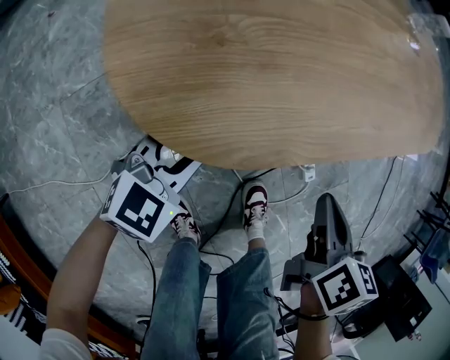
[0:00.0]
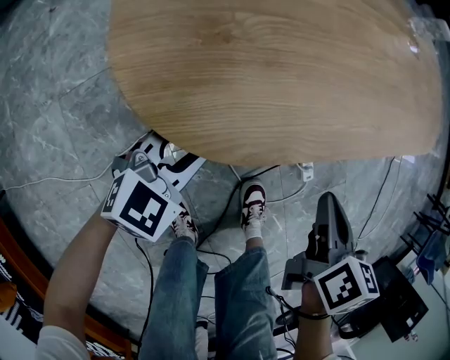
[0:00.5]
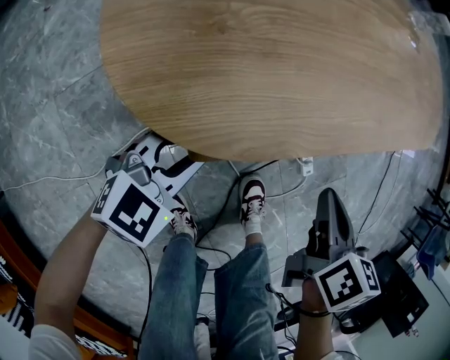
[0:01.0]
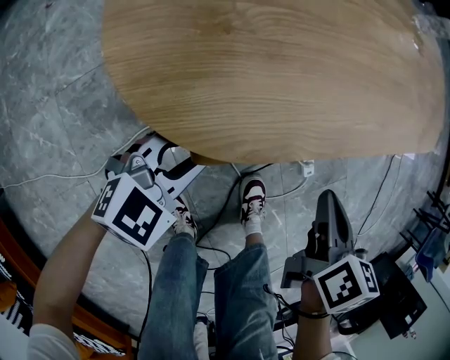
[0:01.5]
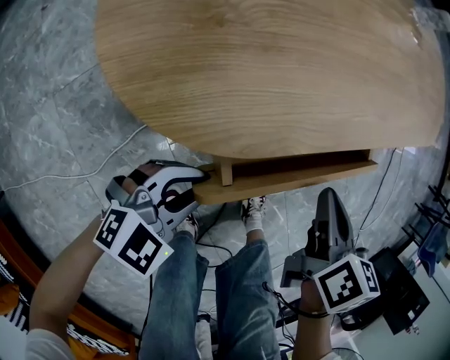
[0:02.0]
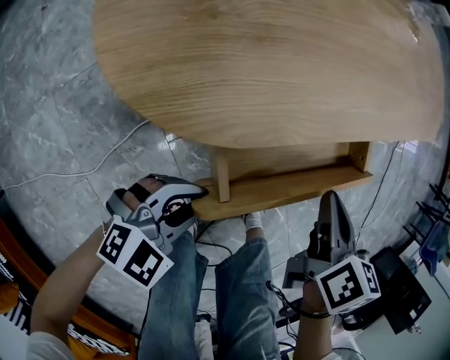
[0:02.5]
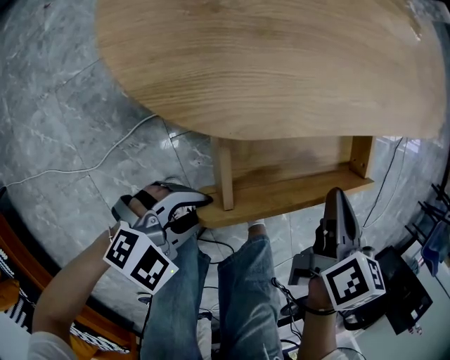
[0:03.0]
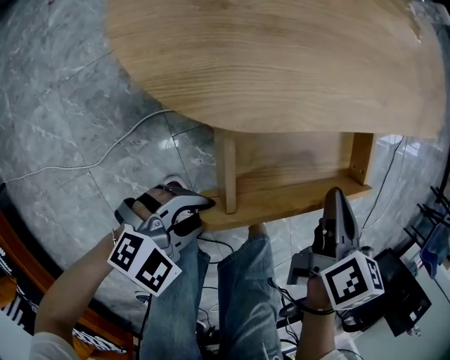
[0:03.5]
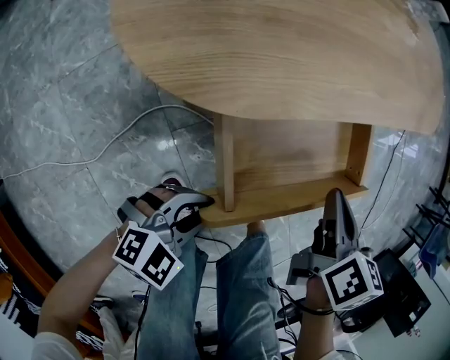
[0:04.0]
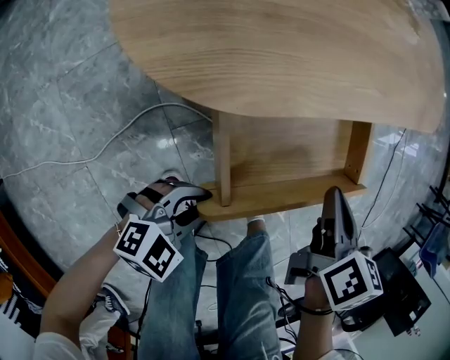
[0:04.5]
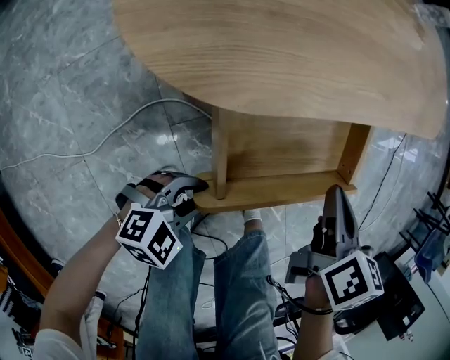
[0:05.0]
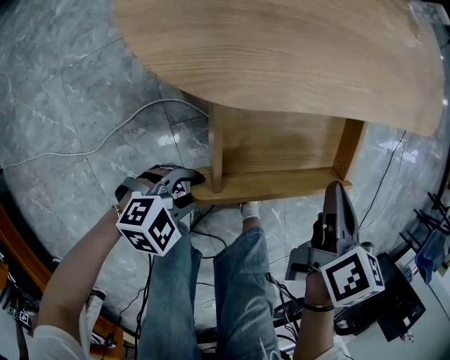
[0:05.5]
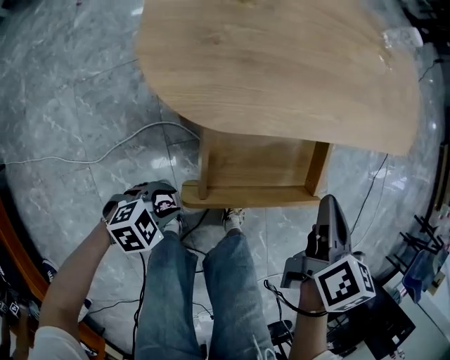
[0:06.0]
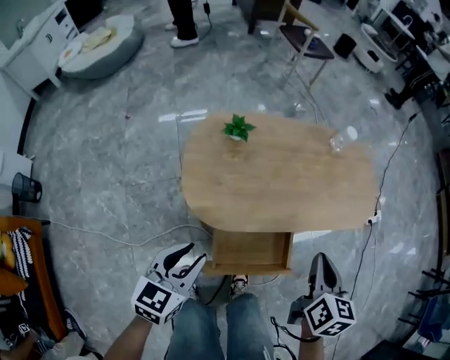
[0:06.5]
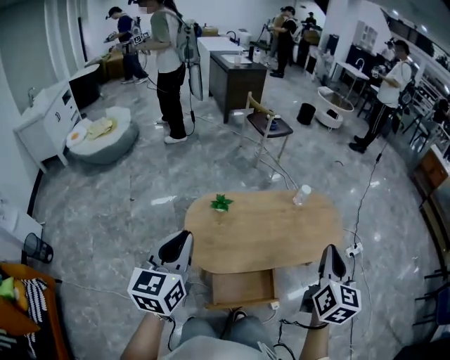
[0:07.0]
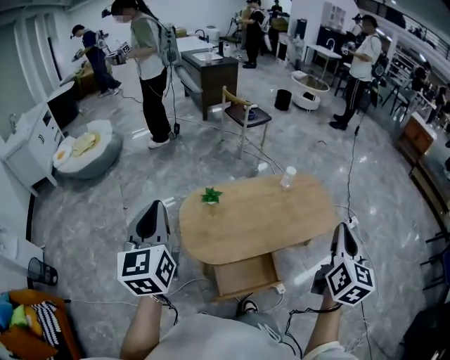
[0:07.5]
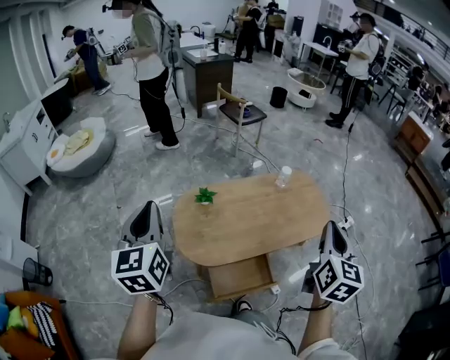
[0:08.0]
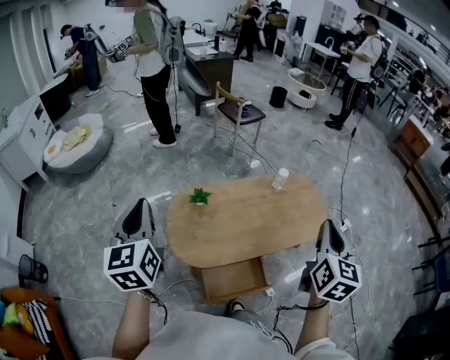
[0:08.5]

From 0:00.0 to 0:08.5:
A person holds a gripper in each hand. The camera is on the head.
From 0:00.0 to 0:02.0: The left gripper heads backward and to the right, covering some 10 cm.
From 0:02.0 to 0:04.0: The left gripper travels to the right and backward by some 10 cm. Meanwhile the right gripper moves roughly 5 cm.
From 0:04.0 to 0:06.5: Both grippers move upward, some 30 cm. The right gripper turns by roughly 20 degrees. Meanwhile the left gripper changes its angle by roughly 60 degrees.
From 0:06.5 to 0:08.5: Both grippers travel together upward, approximately 30 cm. The right gripper rotates roughly 30 degrees, while the left gripper turns by some 40 degrees.

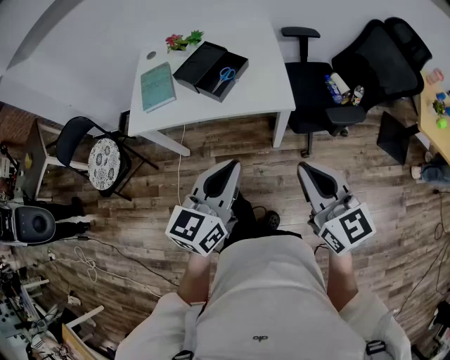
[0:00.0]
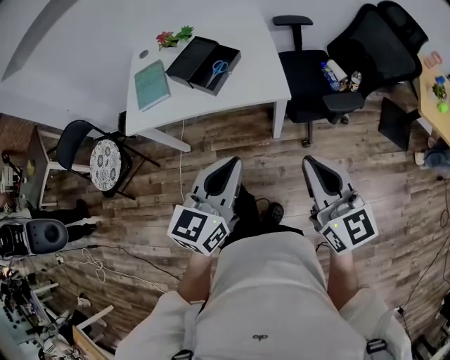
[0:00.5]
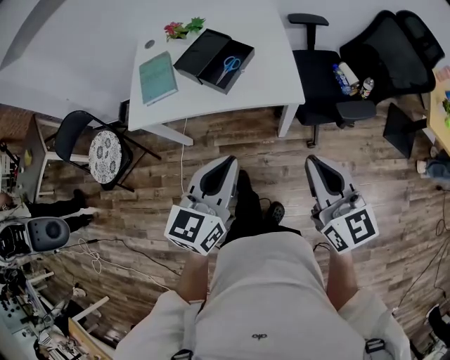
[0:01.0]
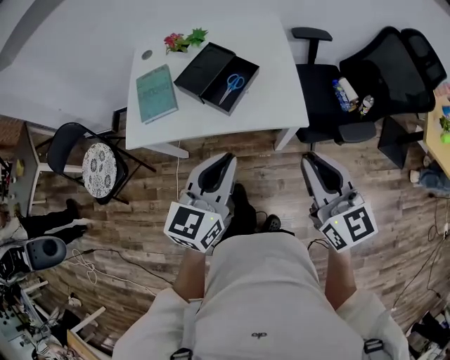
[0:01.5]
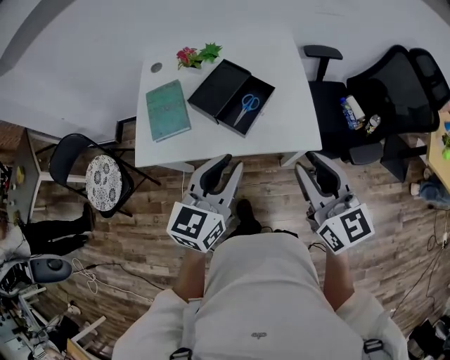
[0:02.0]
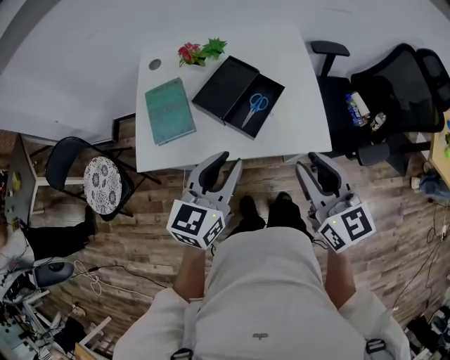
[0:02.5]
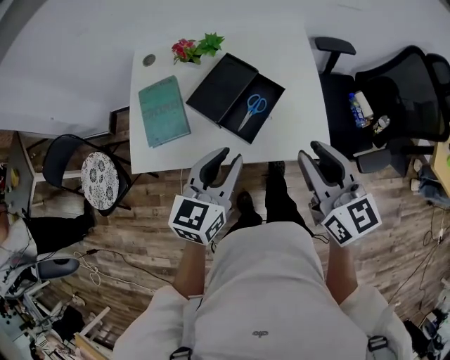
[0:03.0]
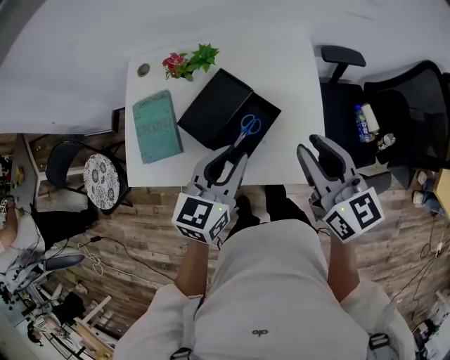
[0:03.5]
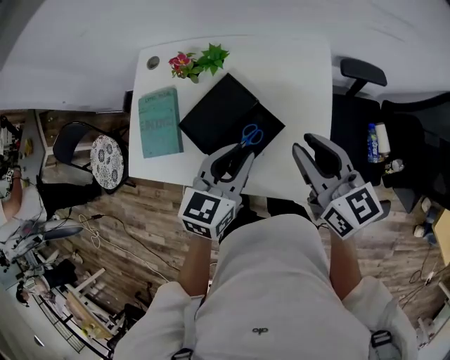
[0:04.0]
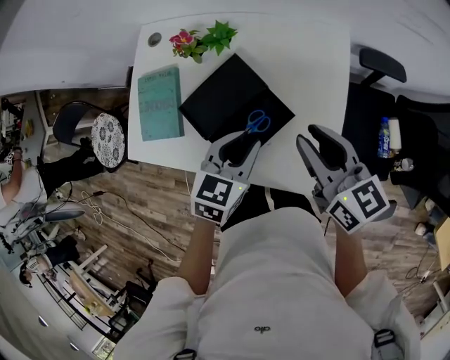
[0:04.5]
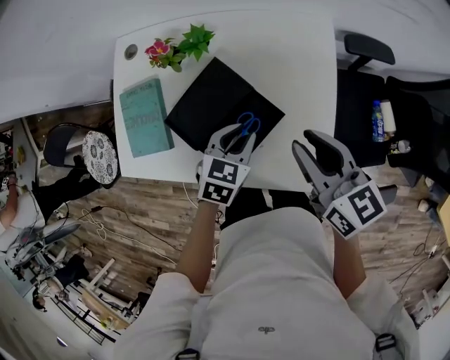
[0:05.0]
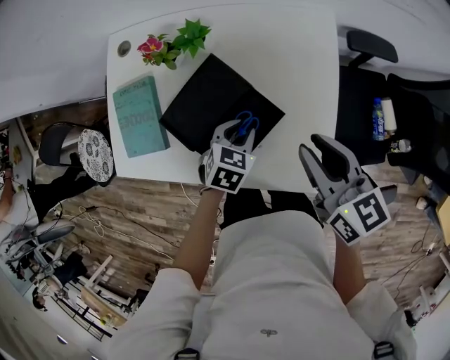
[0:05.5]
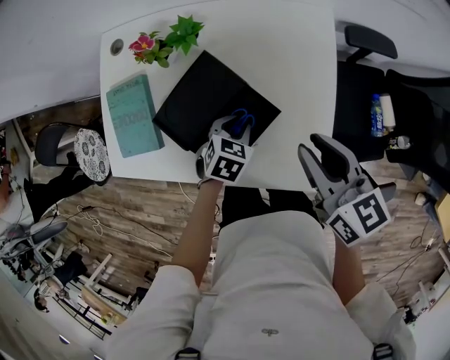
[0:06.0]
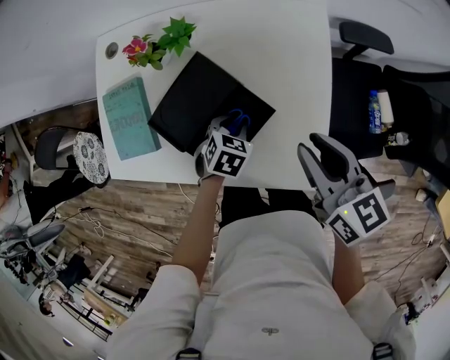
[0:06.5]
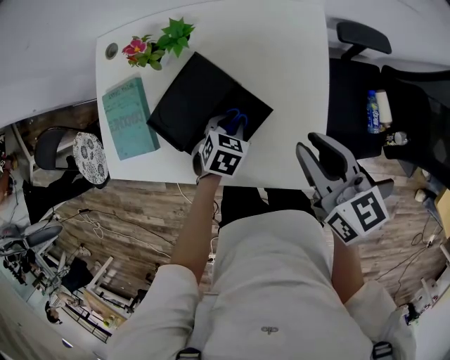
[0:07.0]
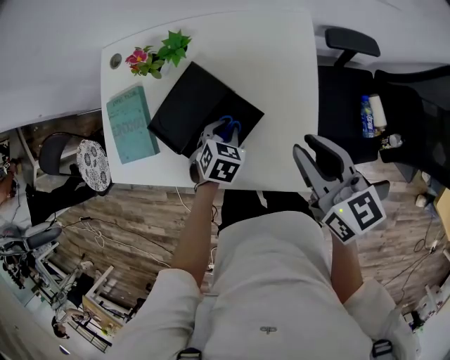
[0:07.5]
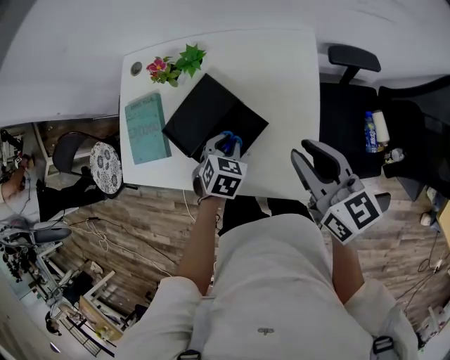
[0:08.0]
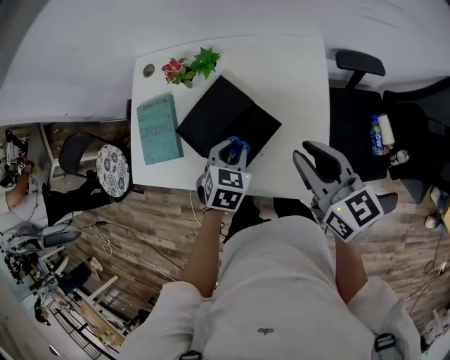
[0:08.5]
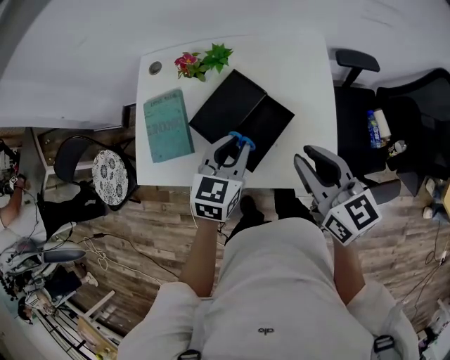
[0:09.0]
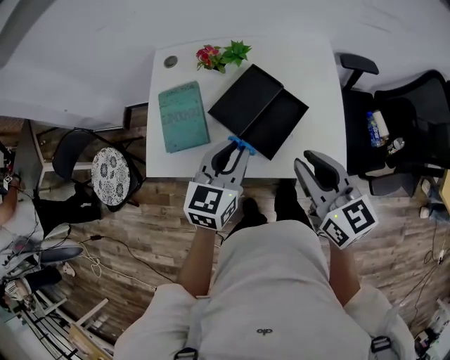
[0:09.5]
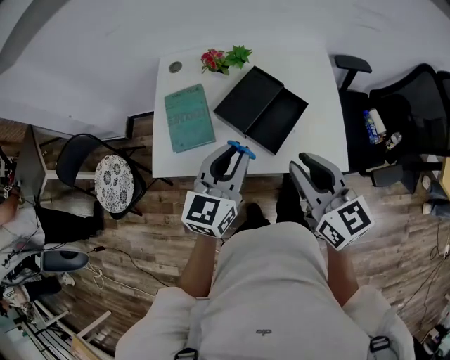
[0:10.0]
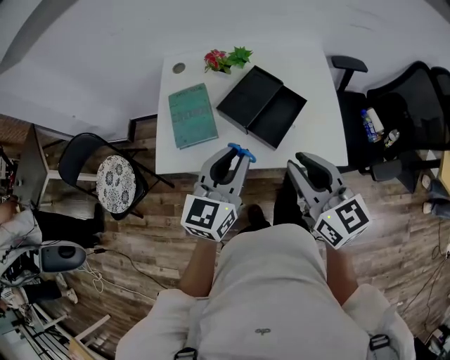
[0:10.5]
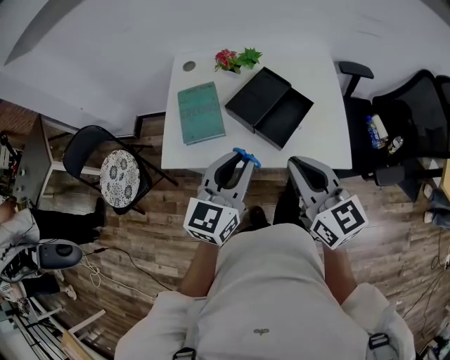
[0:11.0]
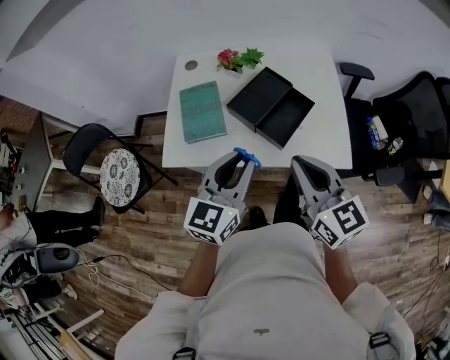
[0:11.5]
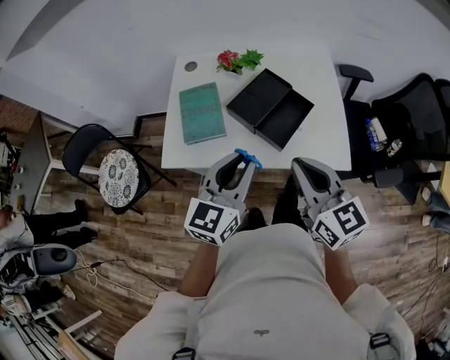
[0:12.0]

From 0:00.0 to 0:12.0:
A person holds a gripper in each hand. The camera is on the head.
From 0:00.0 to 0:02.0: The grippers both shift forward and to the left by roughly 20 cm. The right gripper opens.
From 0:02.0 to 0:04.0: Both grippers travel together forward, approximately 25 cm. The right gripper turns by some 20 degrees.
From 0:04.0 to 0:06.0: The right gripper moves downward, about 5 cm, while the left gripper moves downward, some 20 cm, and tilts its fingers some 30 degrees downward.
From 0:06.0 to 0:08.0: The left gripper moves upward, about 5 cm. The right gripper changes place by roughly 5 cm.
From 0:08.0 to 0:10.0: The right gripper is displaced to the left and backward by about 25 cm, while the left gripper travels upward, to the left and backward by roughly 30 cm, and angles its fingers upward, by approximately 50 degrees.
From 0:10.0 to 0:12.0: The left gripper goes roughly 5 cm backward. The right gripper shifts by about 5 cm, and closes up.

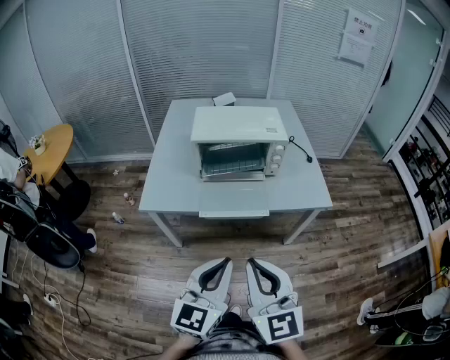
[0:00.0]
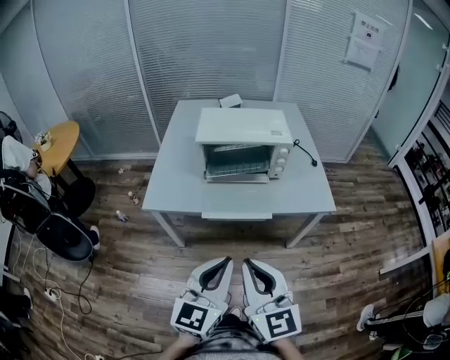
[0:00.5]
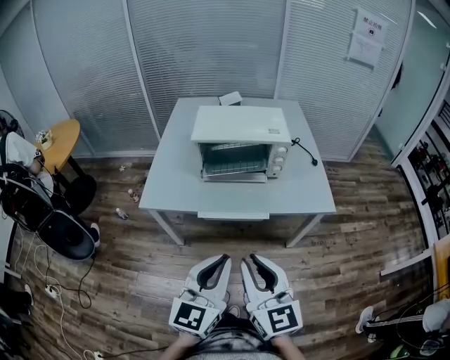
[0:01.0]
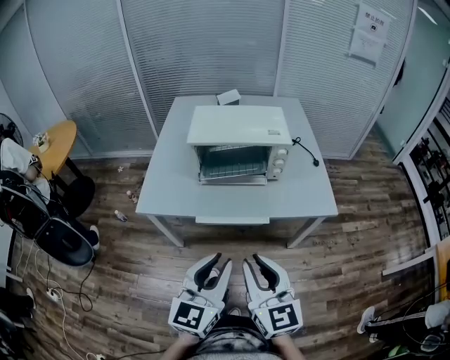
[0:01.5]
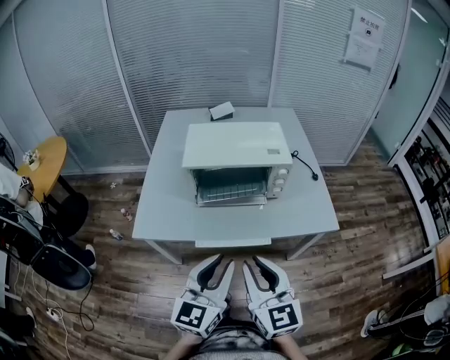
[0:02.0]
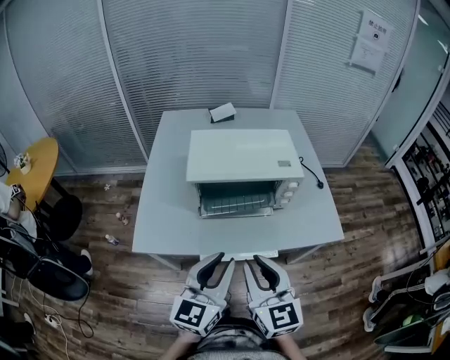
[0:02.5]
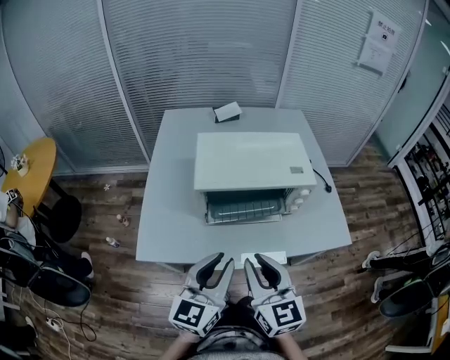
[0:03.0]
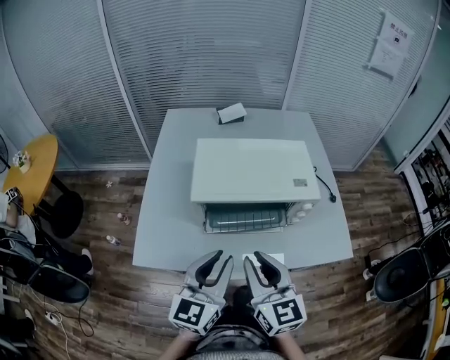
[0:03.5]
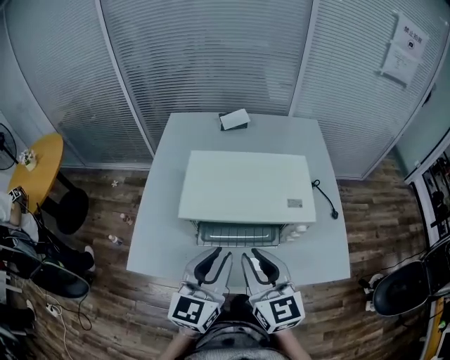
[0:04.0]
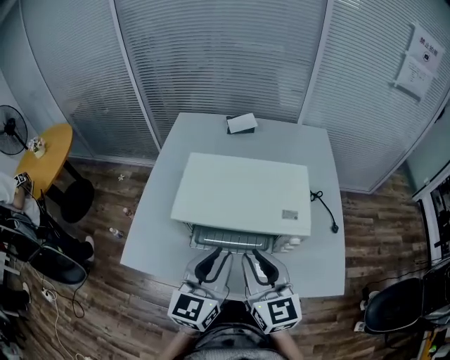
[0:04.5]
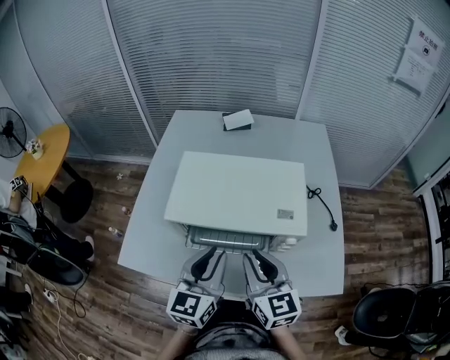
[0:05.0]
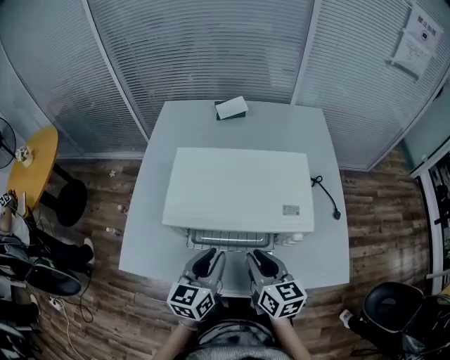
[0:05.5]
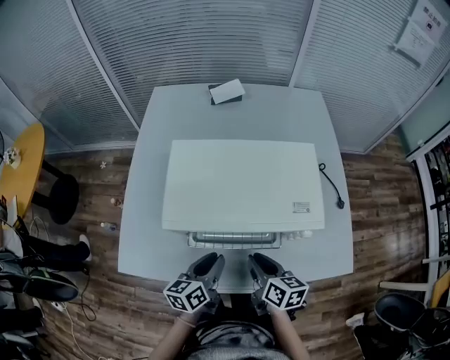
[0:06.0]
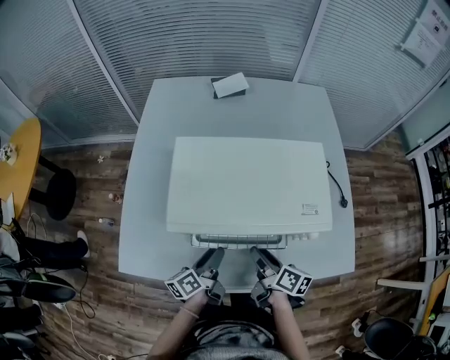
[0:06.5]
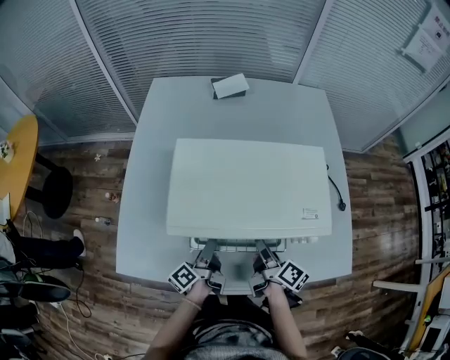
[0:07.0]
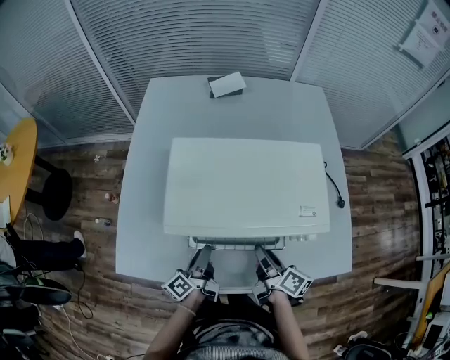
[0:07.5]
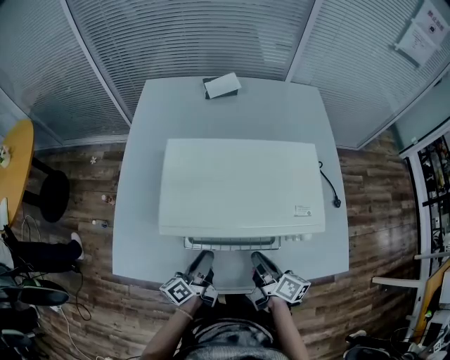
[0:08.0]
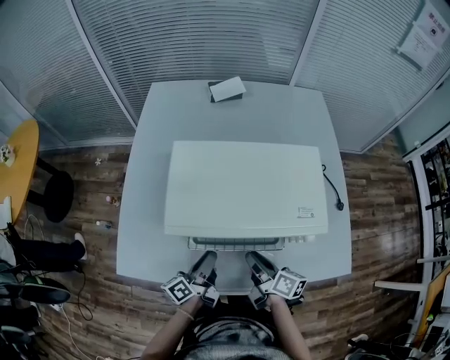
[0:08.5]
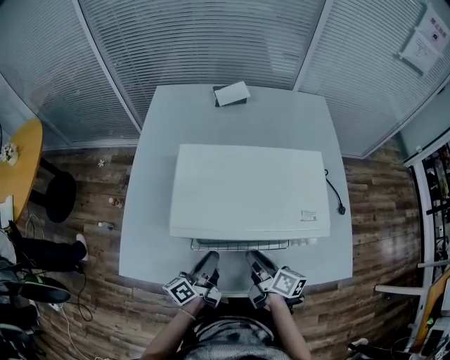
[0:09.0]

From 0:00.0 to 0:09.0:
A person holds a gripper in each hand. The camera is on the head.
From 0:00.0 to 0:02.0: The grippers both shift forward by some 15 cm.
From 0:02.0 to 0:04.5: Both grippers travel together forward, about 25 cm.
From 0:04.5 to 0:07.0: The two grippers go roughly 25 cm downward. The left gripper rolls counterclockwise, seen from behind, by some 70 degrees, and opens up, while the right gripper twists some 70 degrees clockwise, seen from behind.
From 0:07.0 to 0:09.0: The left gripper shifts by about 5 cm, and closes its fingers.
